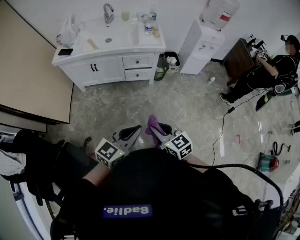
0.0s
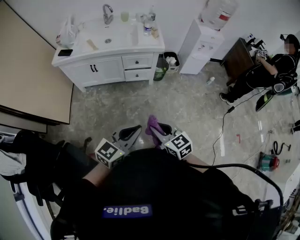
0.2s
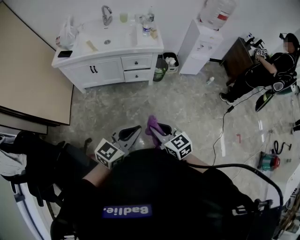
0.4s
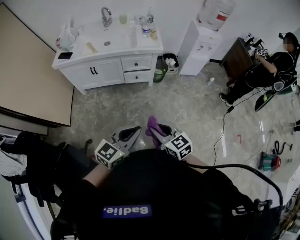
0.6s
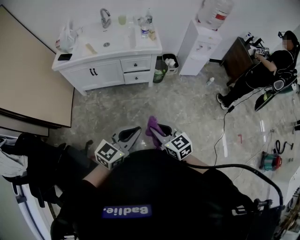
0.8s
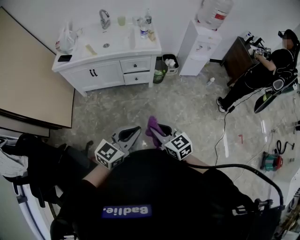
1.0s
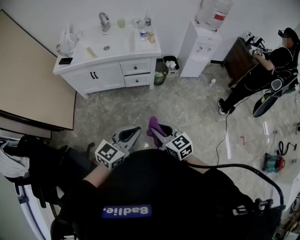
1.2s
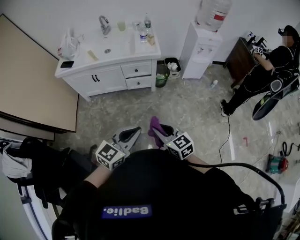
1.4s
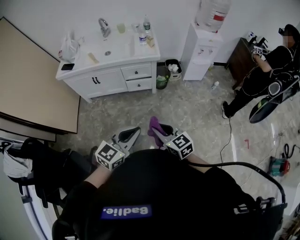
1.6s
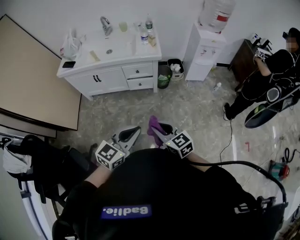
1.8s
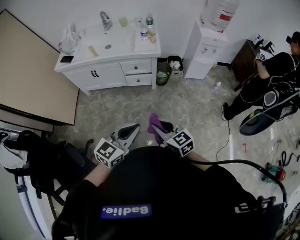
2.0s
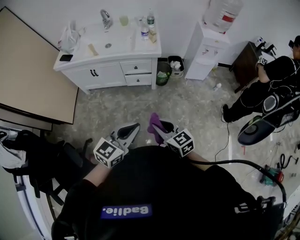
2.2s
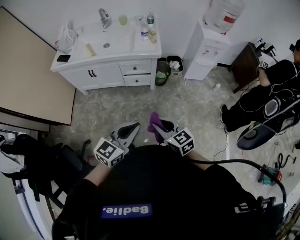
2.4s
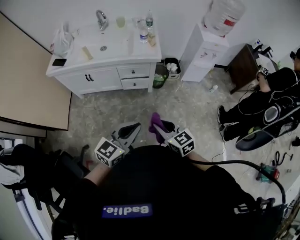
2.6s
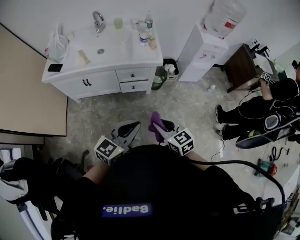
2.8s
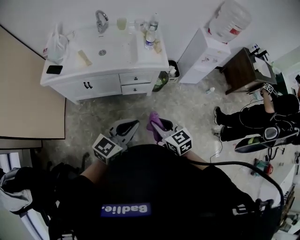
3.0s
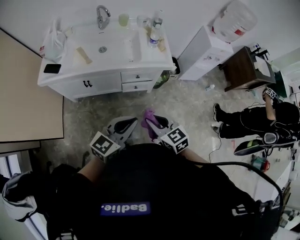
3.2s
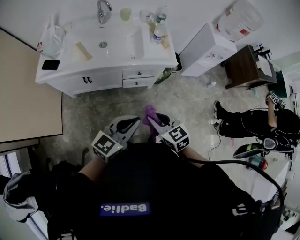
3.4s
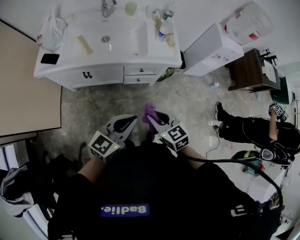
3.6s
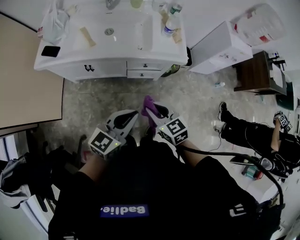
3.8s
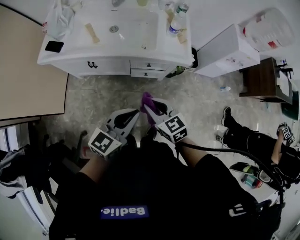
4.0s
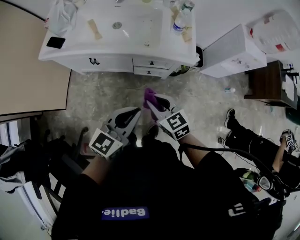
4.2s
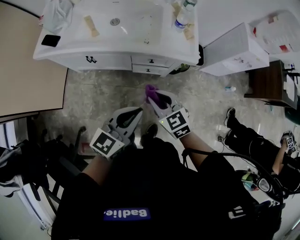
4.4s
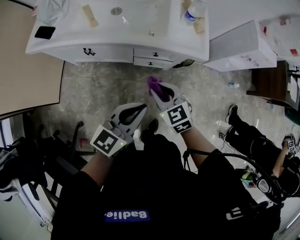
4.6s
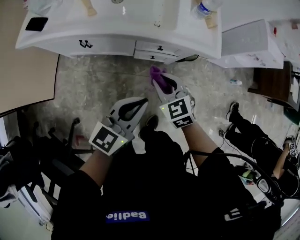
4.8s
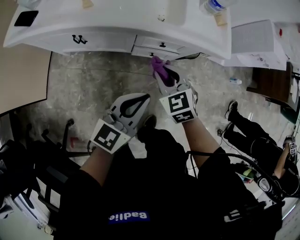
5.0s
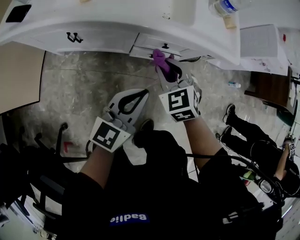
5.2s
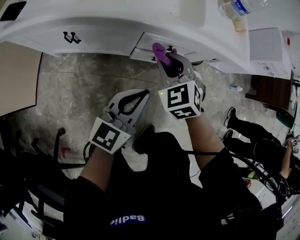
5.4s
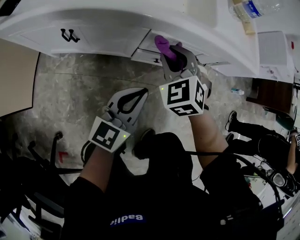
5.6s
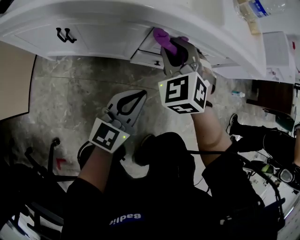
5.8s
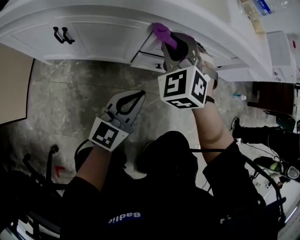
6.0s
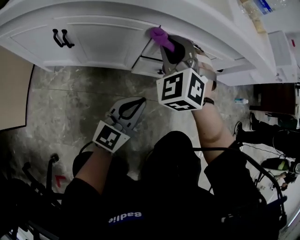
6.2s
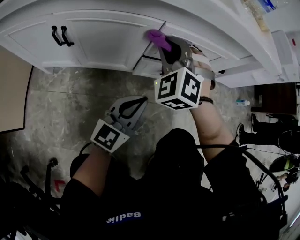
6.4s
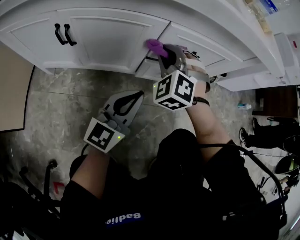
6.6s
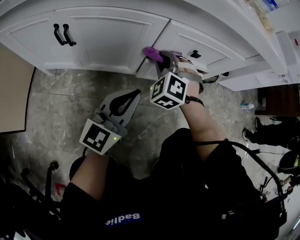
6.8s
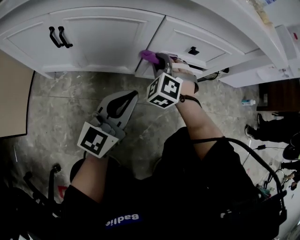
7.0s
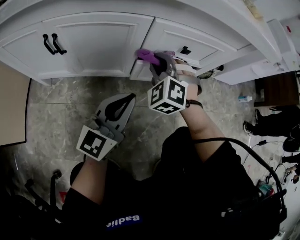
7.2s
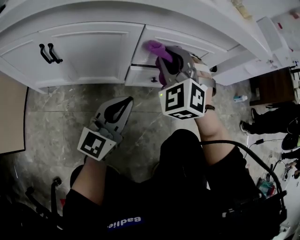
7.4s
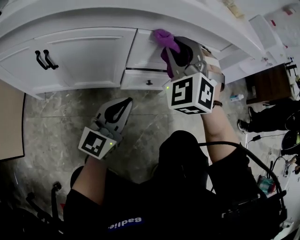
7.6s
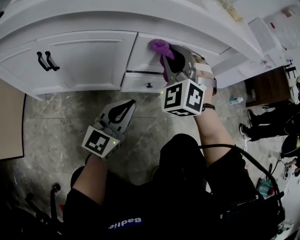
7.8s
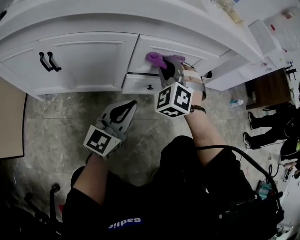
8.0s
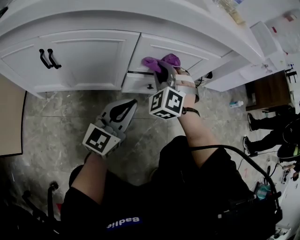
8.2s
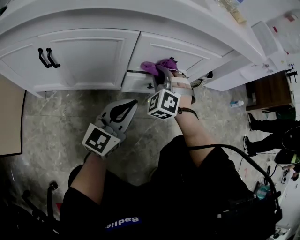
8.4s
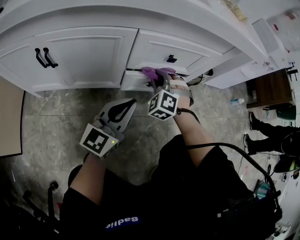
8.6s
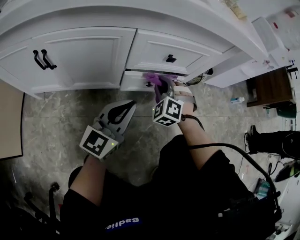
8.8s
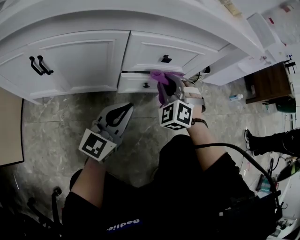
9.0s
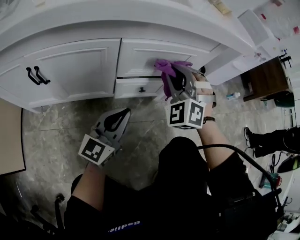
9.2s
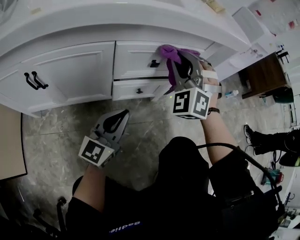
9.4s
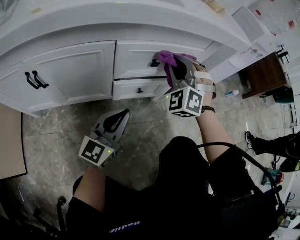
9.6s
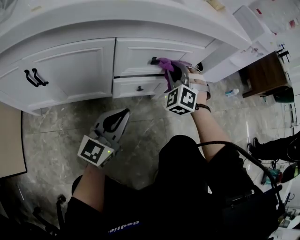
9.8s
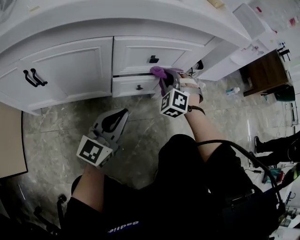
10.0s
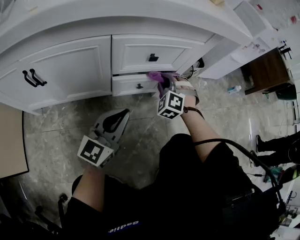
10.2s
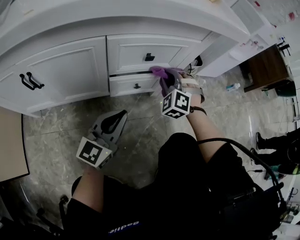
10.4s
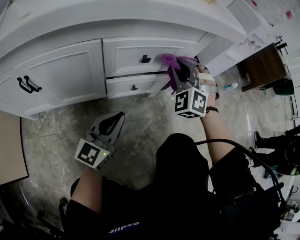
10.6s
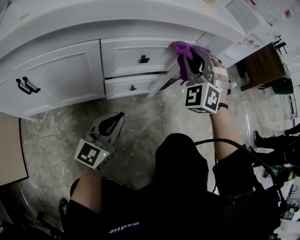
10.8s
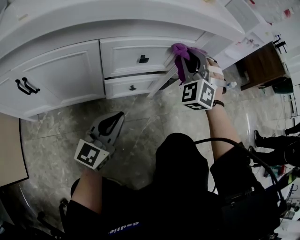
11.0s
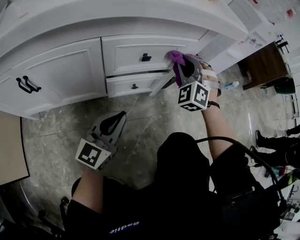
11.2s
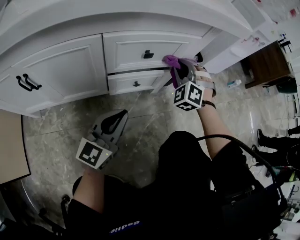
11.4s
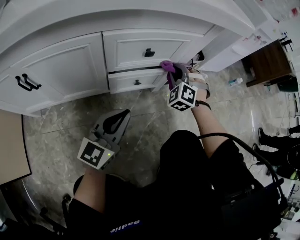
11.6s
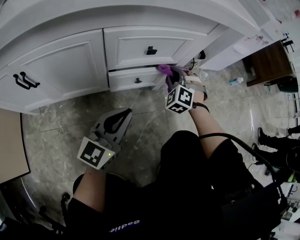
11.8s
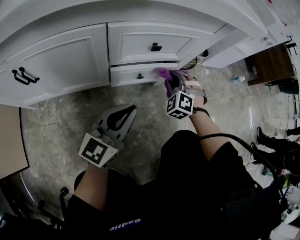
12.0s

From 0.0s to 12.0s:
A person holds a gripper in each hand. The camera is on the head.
From 0.0s to 1.6s: The grippers both shift to the right by roughly 5 cm.
From 1.6s to 3.0s: The right gripper is displaced forward by some 25 cm. The left gripper heads forward and to the left, covering roughly 25 cm.
From 3.0s to 4.4s: The grippers both shift forward and downward by some 20 cm.
From 4.4s to 6.0s: The right gripper travels downward and forward by roughly 35 cm, and rotates around the line of its fingers by some 40 degrees, counterclockwise from behind; the left gripper travels downward by approximately 40 cm.
From 6.0s to 7.6s: The left gripper ends up about 5 cm from where it was. The right gripper shifts about 5 cm to the right, and travels downward and back again, roughly 20 cm each way.
From 7.6s to 9.0s: The right gripper is displaced downward by about 15 cm.
From 9.0s to 10.4s: The right gripper swings up and down, roughly 20 cm each way, with 2 reversals.
From 10.4s to 12.0s: The right gripper travels upward and back again, about 15 cm each way.

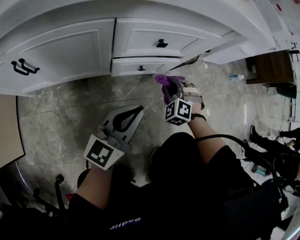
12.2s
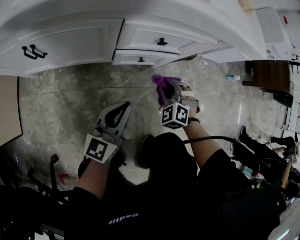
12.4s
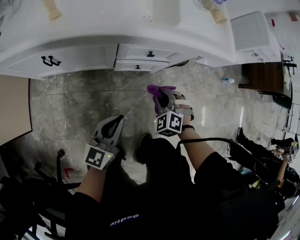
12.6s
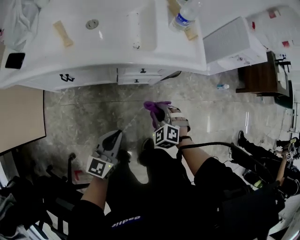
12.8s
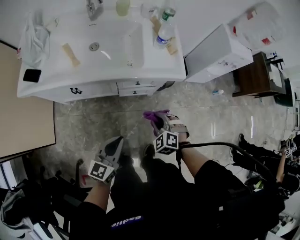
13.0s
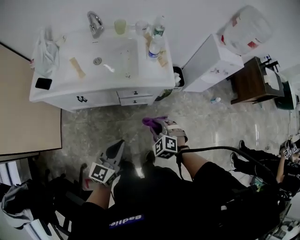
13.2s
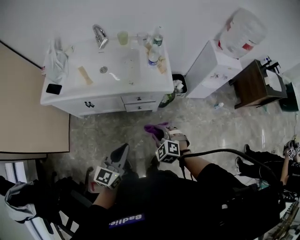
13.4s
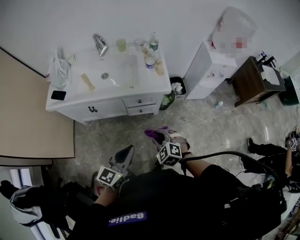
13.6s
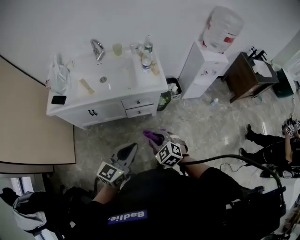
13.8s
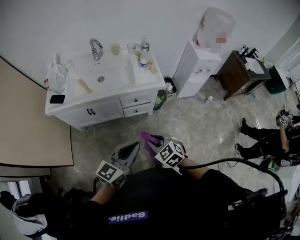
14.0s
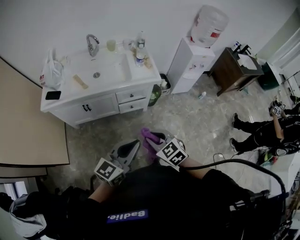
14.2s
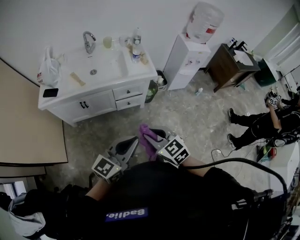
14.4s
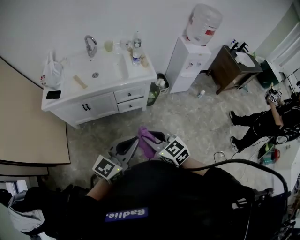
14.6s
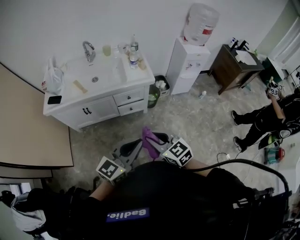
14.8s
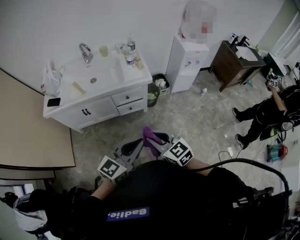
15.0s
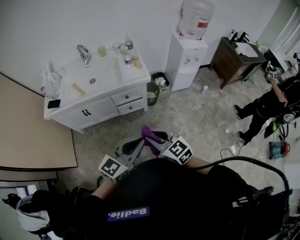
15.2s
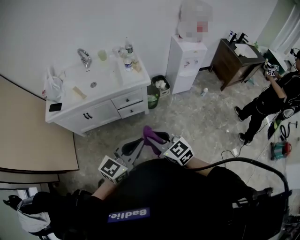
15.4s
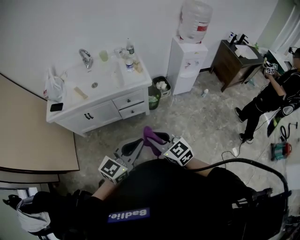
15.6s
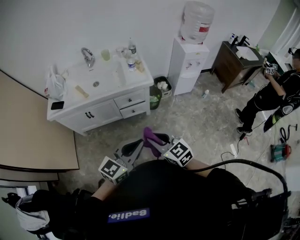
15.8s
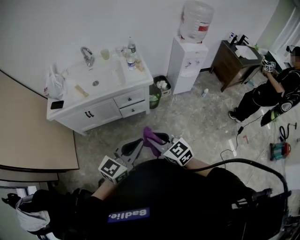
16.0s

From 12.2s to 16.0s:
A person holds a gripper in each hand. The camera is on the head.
From 12.2s to 13.4s: Both grippers travel together upward, some 50 cm. The right gripper rotates some 20 degrees.
From 13.4s to 14.8s: The grippers both shift backward and upward by approximately 25 cm. The right gripper rotates around the line of its fingers by some 40 degrees, clockwise from behind. Meanwhile the left gripper changes its angle by about 30 degrees.
From 14.8s to 16.0s: The grippers make only small movements.

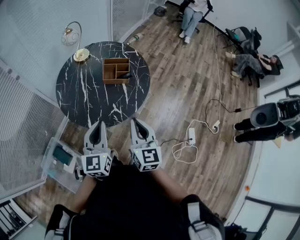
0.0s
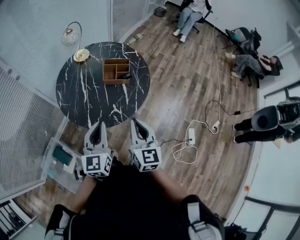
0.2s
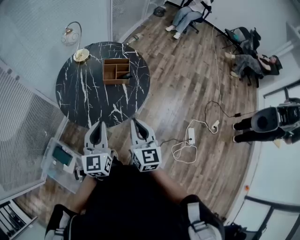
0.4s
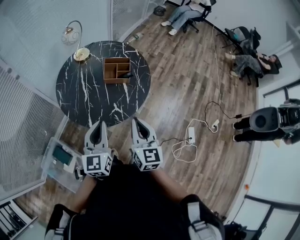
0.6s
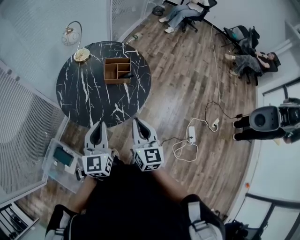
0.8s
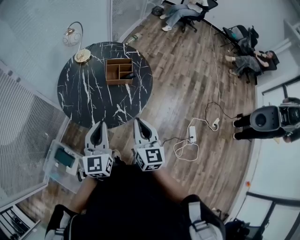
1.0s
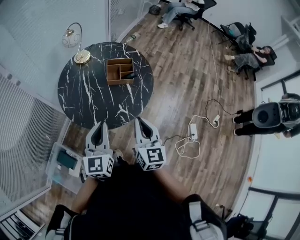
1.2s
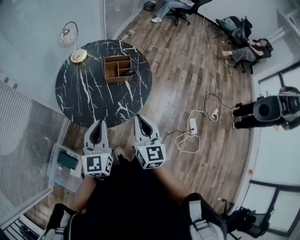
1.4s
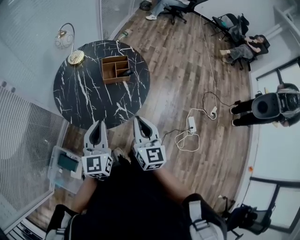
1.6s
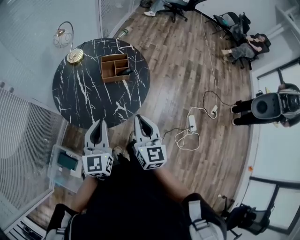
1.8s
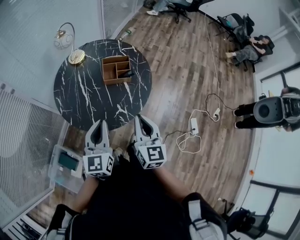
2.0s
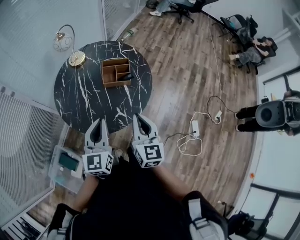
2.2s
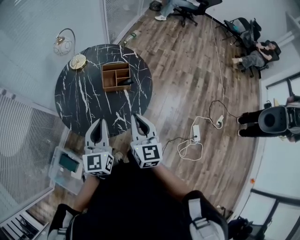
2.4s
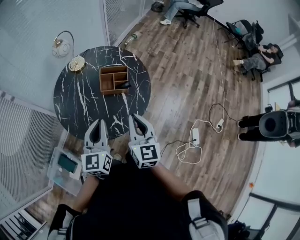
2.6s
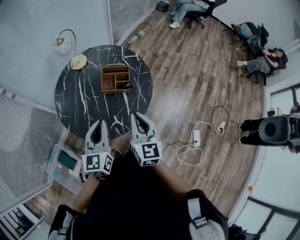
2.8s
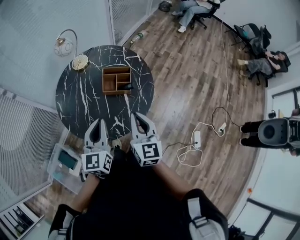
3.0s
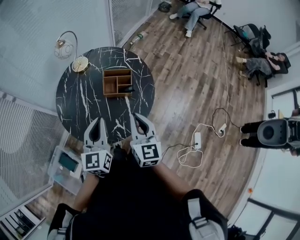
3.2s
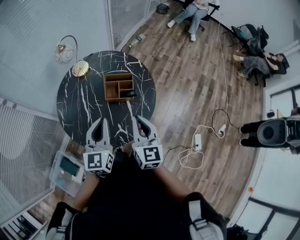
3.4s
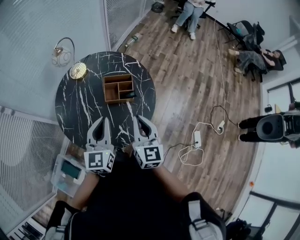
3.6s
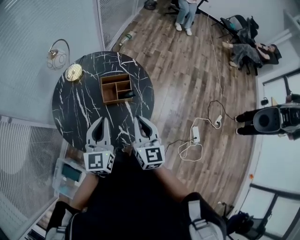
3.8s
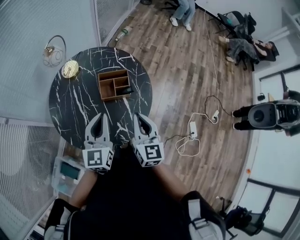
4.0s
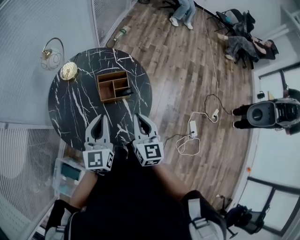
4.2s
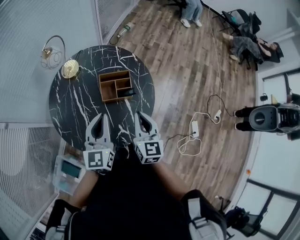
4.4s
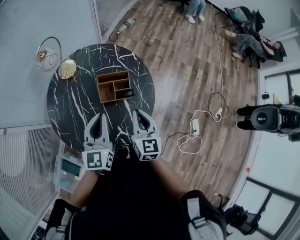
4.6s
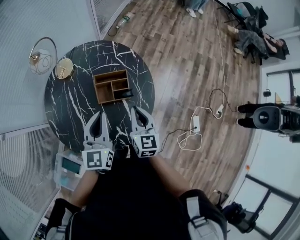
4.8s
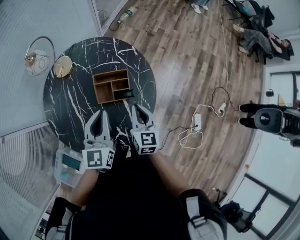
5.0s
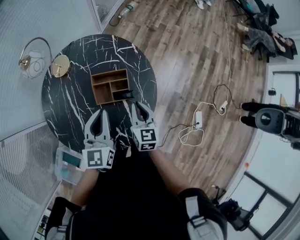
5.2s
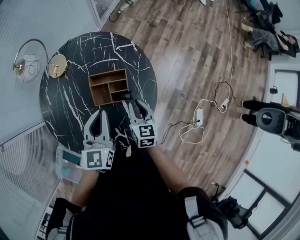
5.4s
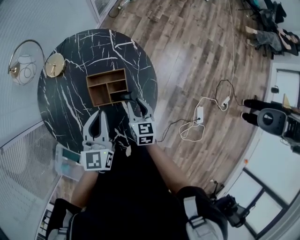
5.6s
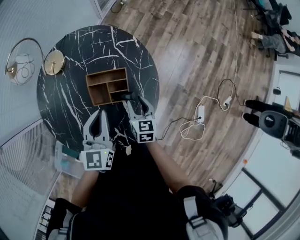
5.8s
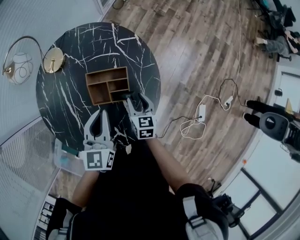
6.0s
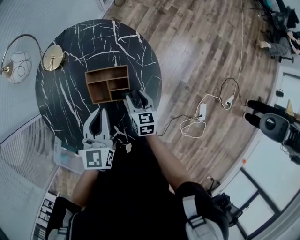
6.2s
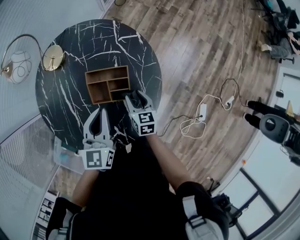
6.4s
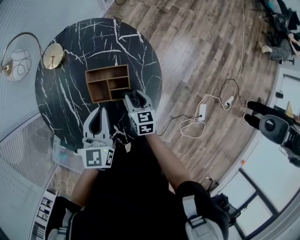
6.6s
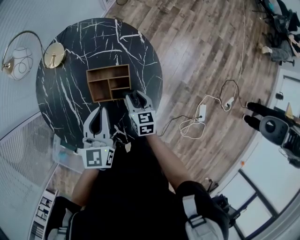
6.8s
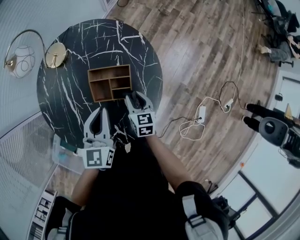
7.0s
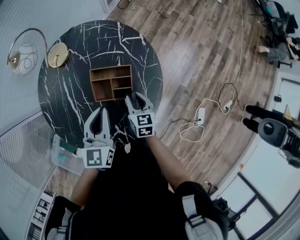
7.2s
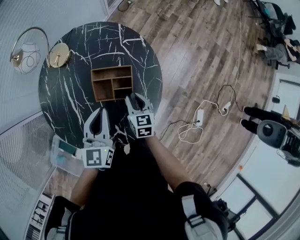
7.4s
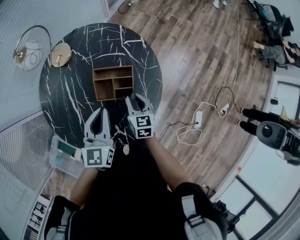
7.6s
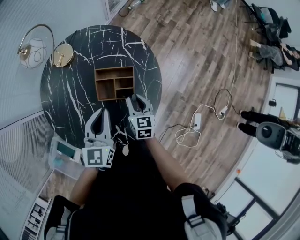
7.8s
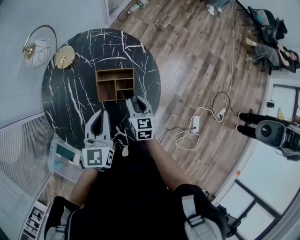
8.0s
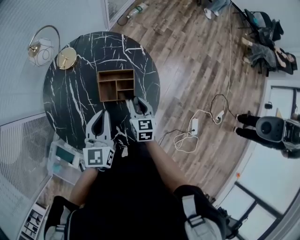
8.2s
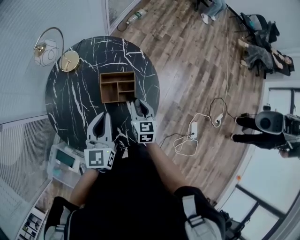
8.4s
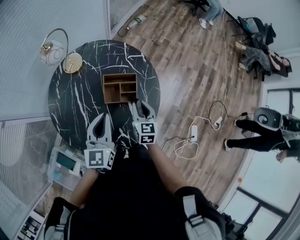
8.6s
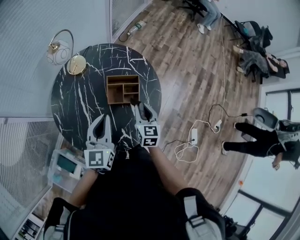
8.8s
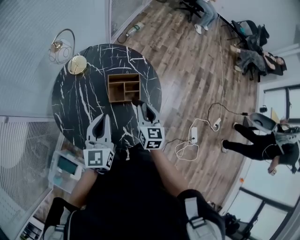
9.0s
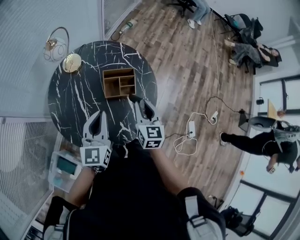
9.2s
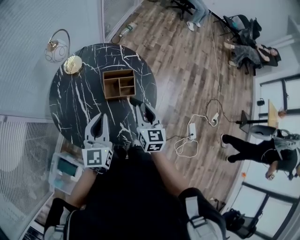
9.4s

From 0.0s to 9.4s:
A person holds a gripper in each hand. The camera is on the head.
From 0.0s to 1.6s: The grippers both shift to the left by about 5 cm.
From 1.6s to 3.2s: The right gripper heads forward, covering roughly 15 cm; the left gripper travels forward and to the right by about 15 cm.
From 3.2s to 4.8s: The right gripper goes approximately 15 cm forward and downward; the left gripper moves forward, roughly 15 cm.
From 4.8s to 6.2s: The right gripper is displaced downward and forward by some 25 cm, turns by roughly 20 degrees, and opens up. Meanwhile the left gripper travels downward and forward by approximately 15 cm.
From 6.2s to 7.8s: The right gripper is displaced upward by approximately 5 cm. Meanwhile the left gripper changes place by roughly 5 cm.
From 7.8s to 9.4s: The right gripper heads upward and backward, covering approximately 20 cm. The left gripper travels backward, upward and to the left by some 15 cm.
